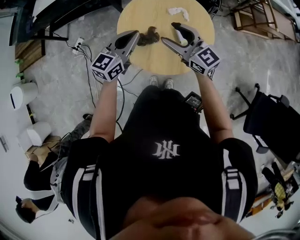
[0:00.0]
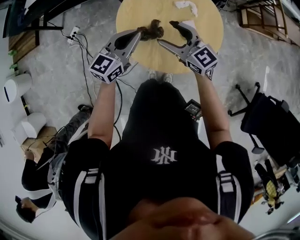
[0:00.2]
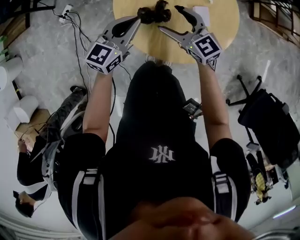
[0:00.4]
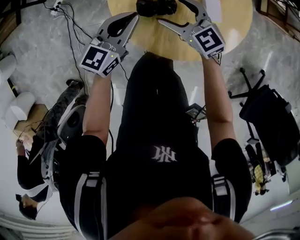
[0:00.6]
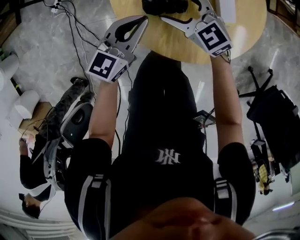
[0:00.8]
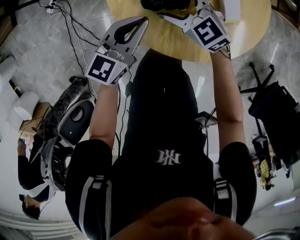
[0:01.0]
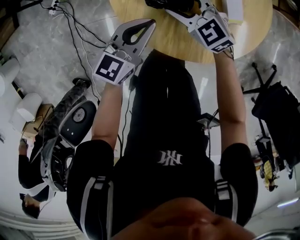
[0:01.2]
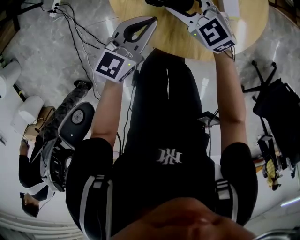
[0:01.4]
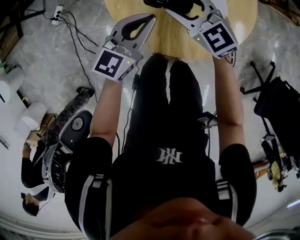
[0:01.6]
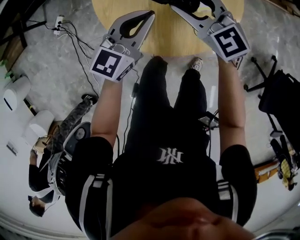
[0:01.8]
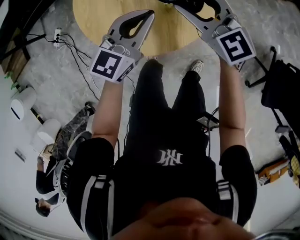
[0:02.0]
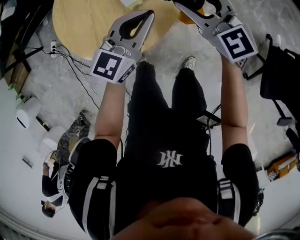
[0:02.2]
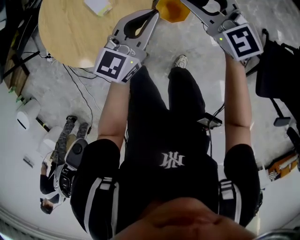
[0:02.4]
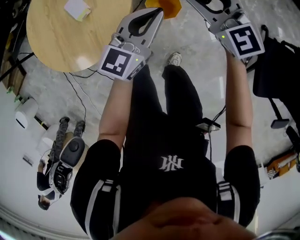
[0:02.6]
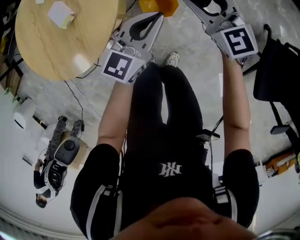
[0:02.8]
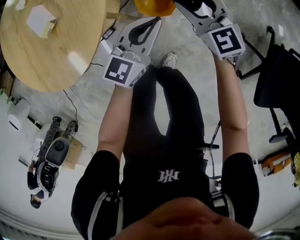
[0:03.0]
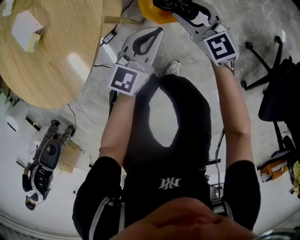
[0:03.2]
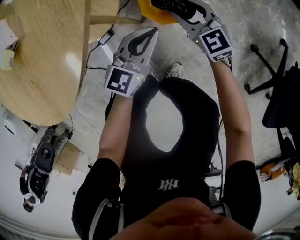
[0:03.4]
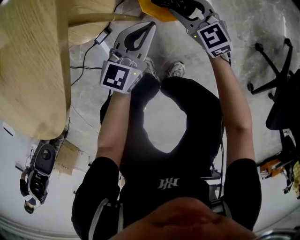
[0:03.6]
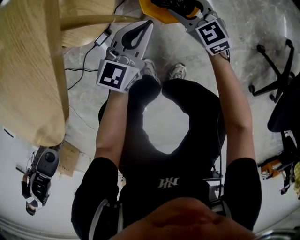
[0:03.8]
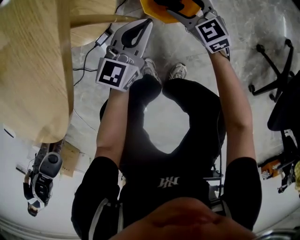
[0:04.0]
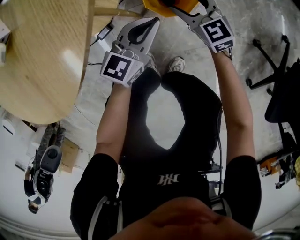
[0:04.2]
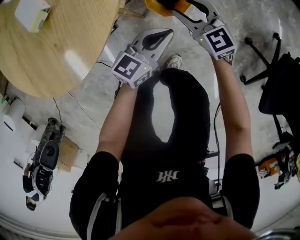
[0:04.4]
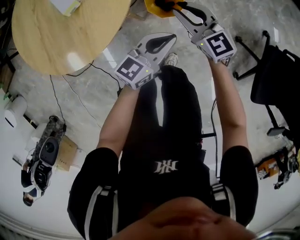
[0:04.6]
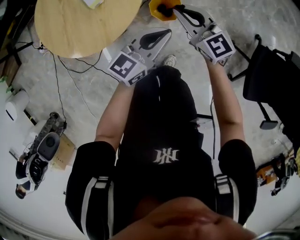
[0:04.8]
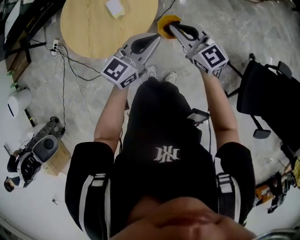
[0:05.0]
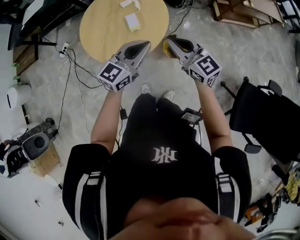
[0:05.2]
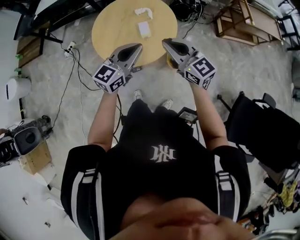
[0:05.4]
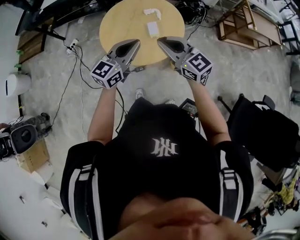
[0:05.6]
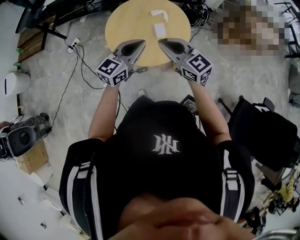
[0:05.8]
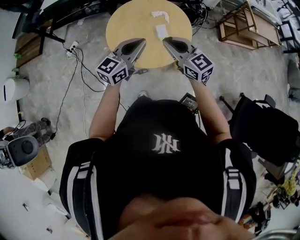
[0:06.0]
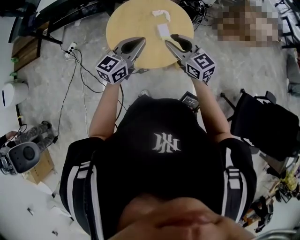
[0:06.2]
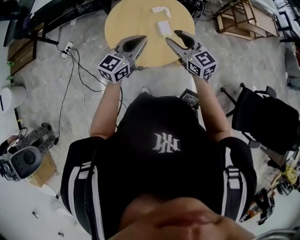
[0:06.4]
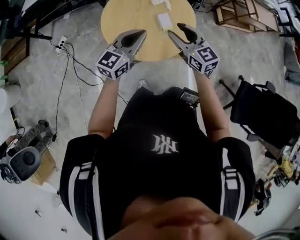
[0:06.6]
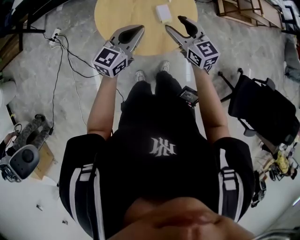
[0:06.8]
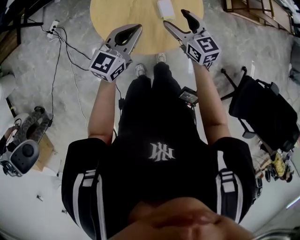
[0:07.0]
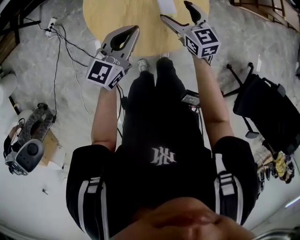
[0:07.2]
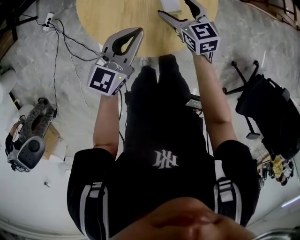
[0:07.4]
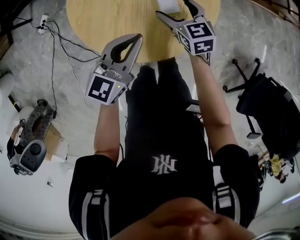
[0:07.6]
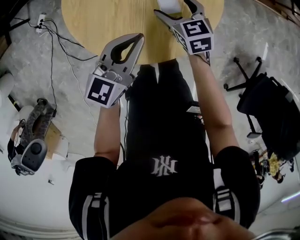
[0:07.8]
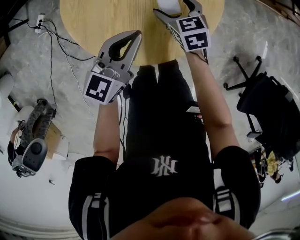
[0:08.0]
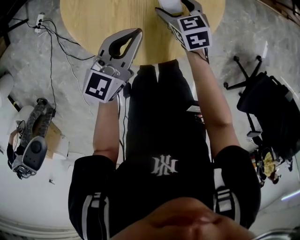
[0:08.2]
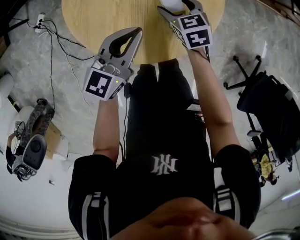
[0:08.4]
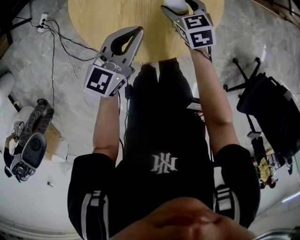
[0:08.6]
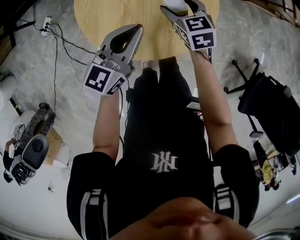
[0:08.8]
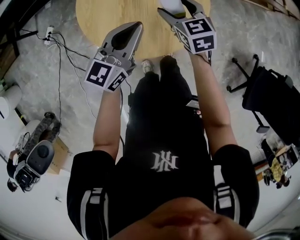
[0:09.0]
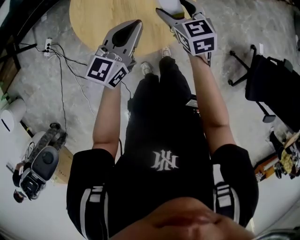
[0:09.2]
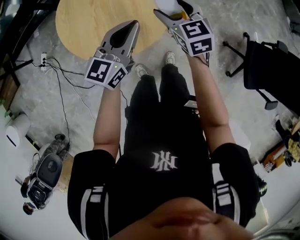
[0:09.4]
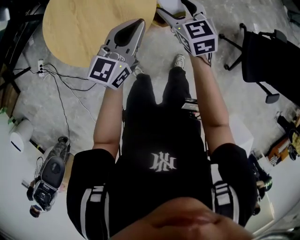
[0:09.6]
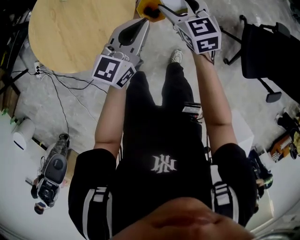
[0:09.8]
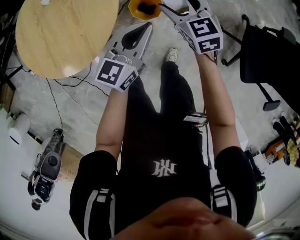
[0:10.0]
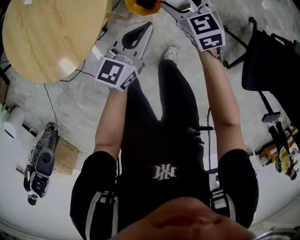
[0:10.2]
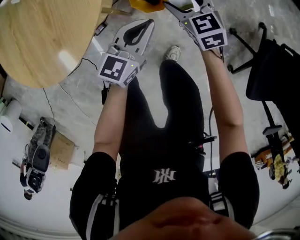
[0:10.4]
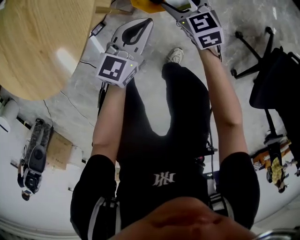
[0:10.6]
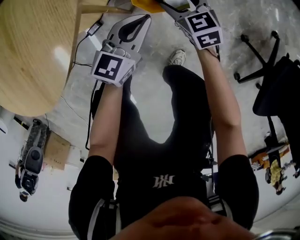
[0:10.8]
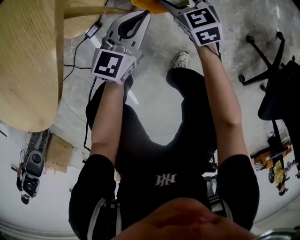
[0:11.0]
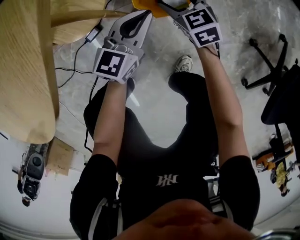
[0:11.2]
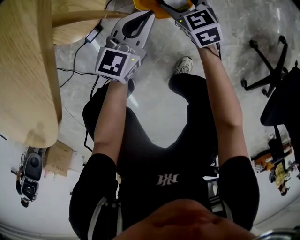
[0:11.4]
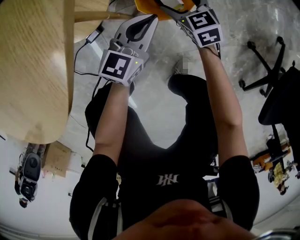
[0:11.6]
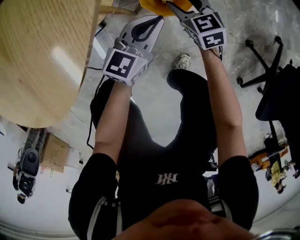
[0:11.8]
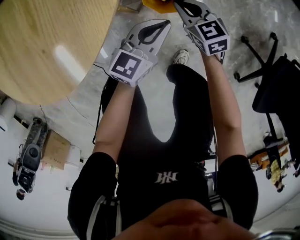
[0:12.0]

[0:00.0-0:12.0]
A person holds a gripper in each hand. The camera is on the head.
0:00.0 to 0:01.6: The grippers both shift downward by approximately 20 cm. The right gripper changes its angle by roughly 30 degrees.
0:01.6 to 0:03.0: The pair of grippers is taken to the right, some 50 cm. The right gripper turns by roughly 20 degrees.
0:03.0 to 0:04.4: The right gripper is displaced downward and to the left by roughly 15 cm, while the left gripper moves downward and backward, some 15 cm.
0:04.4 to 0:06.0: Both grippers travel together upward and to the left, roughly 60 cm. The right gripper turns by approximately 20 degrees, and closes up. Meanwhile the left gripper turns by about 30 degrees.
0:06.0 to 0:07.6: The right gripper moves downward and forward, about 35 cm, rotates about 30 degrees, and opens, while the left gripper moves downward and forward, about 20 cm.
0:07.6 to 0:09.0: The left gripper travels upward by approximately 5 cm. Meanwhile the right gripper moves upward, some 10 cm.
0:09.0 to 0:10.4: Both grippers move to the right and downward, some 50 cm.
0:10.4 to 0:12.0: The left gripper shifts about 10 cm downward; the right gripper shifts some 15 cm downward and to the left, and closes.

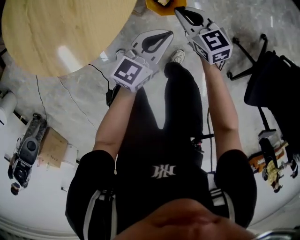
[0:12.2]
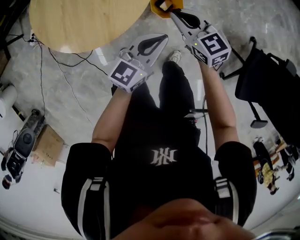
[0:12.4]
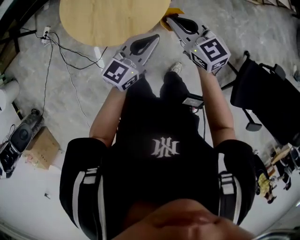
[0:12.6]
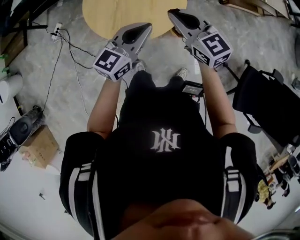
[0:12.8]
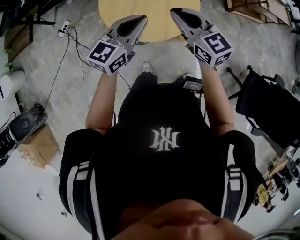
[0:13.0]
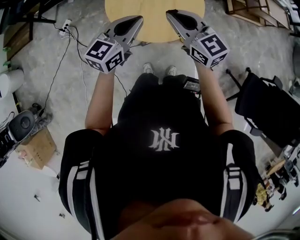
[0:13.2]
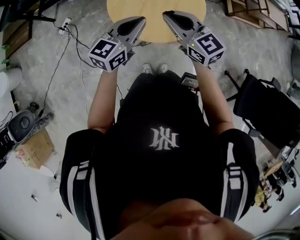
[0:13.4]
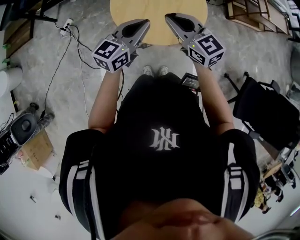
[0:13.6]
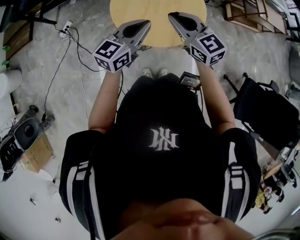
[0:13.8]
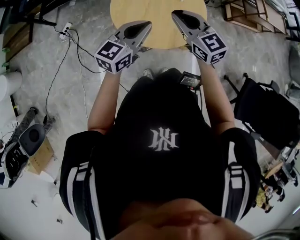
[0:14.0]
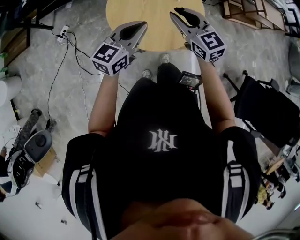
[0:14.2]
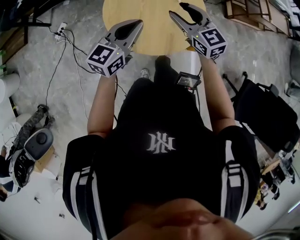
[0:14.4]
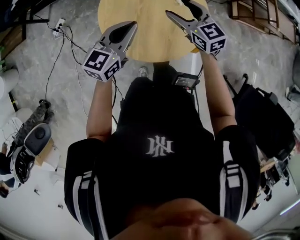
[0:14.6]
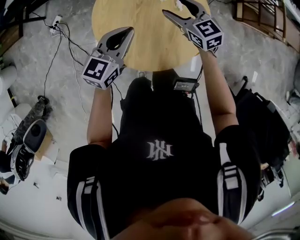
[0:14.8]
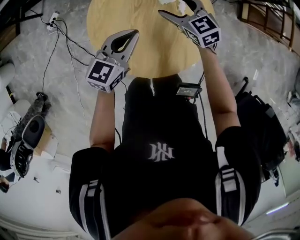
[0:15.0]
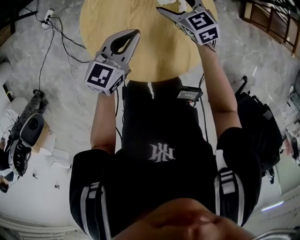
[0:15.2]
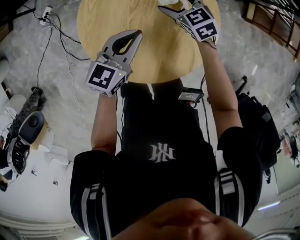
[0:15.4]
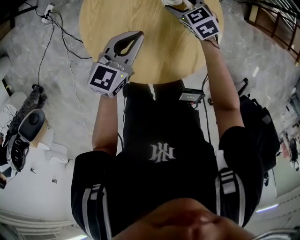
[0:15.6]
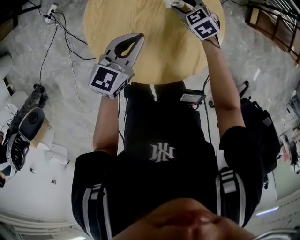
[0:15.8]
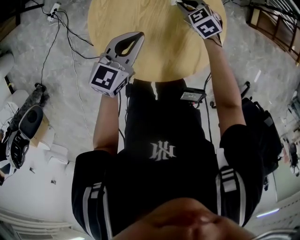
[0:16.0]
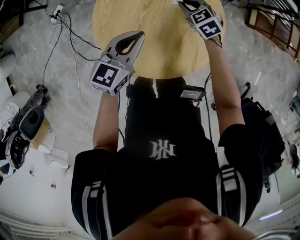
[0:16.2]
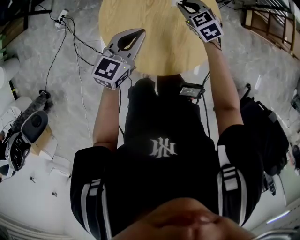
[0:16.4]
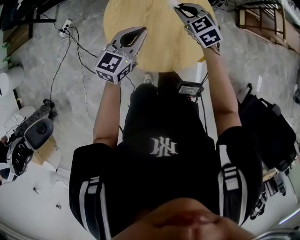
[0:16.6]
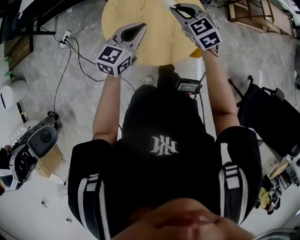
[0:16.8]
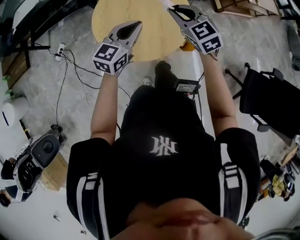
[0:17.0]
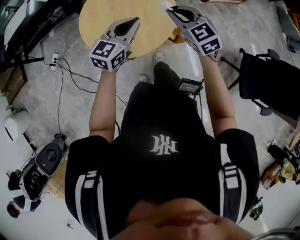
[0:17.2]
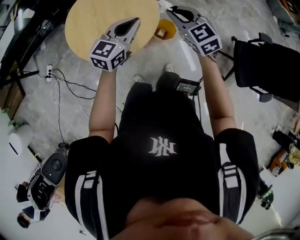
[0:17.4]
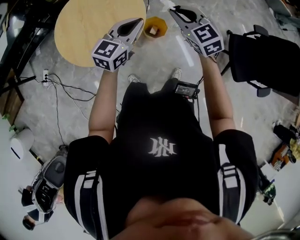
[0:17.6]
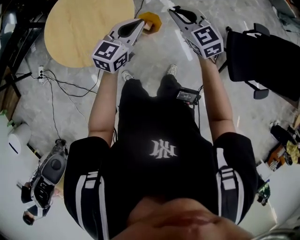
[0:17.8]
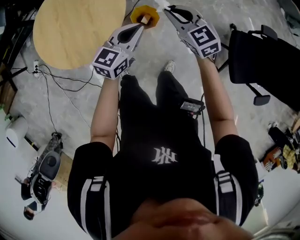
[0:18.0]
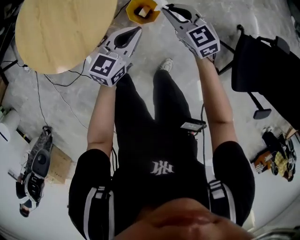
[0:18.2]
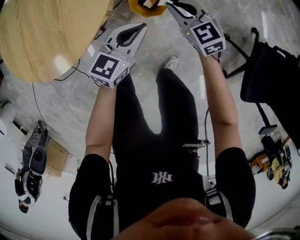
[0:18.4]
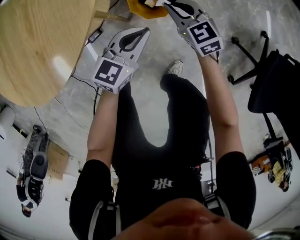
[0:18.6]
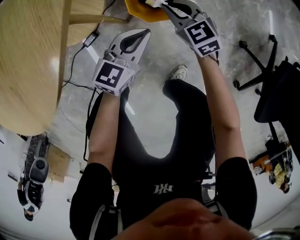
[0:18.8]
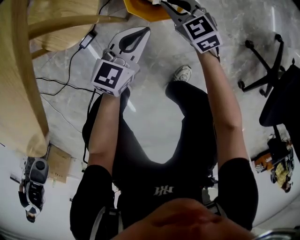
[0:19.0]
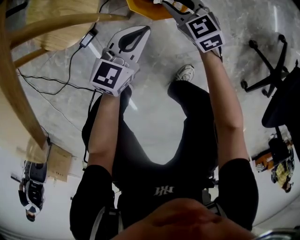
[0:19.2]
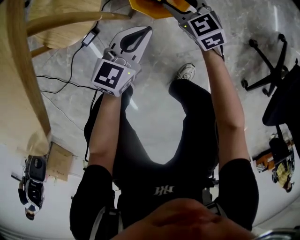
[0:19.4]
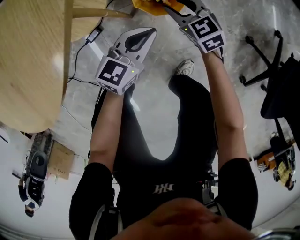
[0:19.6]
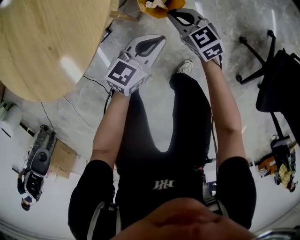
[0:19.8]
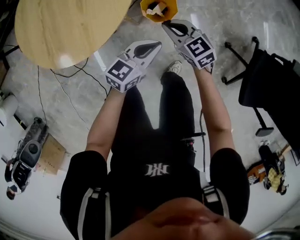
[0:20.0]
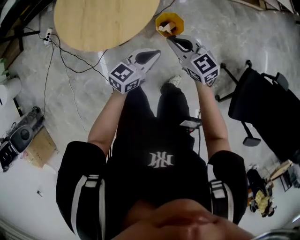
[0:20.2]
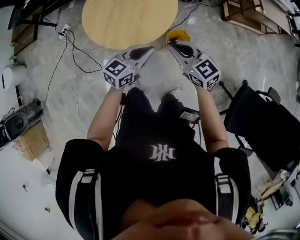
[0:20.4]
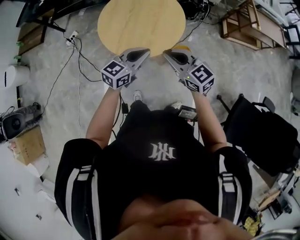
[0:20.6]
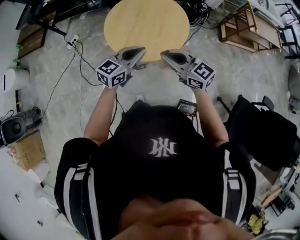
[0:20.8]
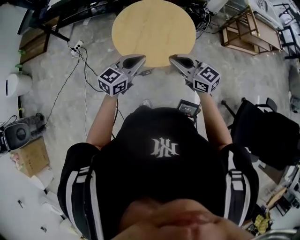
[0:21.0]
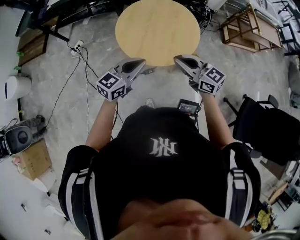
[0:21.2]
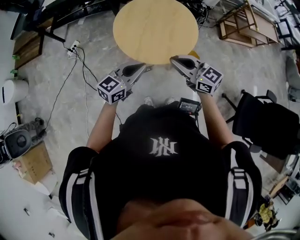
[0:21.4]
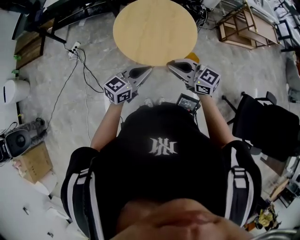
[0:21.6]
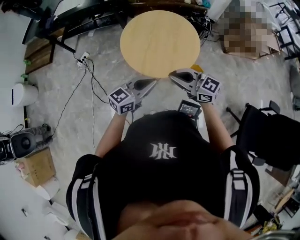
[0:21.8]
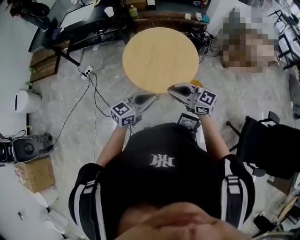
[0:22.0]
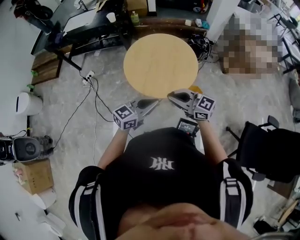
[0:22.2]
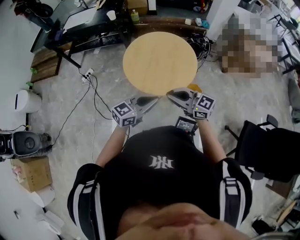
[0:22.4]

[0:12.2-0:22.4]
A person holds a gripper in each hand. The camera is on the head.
0:12.2 to 0:13.6: The left gripper goes about 50 cm to the left and upward. Meanwhile the right gripper goes approximately 60 cm upward and to the left, and swivels roughly 30 degrees.
0:13.6 to 0:15.2: Both grippers move forward and downward, some 40 cm. The right gripper turns by roughly 20 degrees, and opens up.
0:15.2 to 0:16.6: The two grippers go about 15 cm upward and backward. The right gripper closes up.
0:16.6 to 0:18.0: The pair of grippers is taken approximately 50 cm. The left gripper changes its angle by about 20 degrees. Meanwhile the right gripper turns by about 30 degrees.
0:18.0 to 0:19.4: The grippers both shift downward by approximately 60 cm. The right gripper opens its fingers.
0:19.4 to 0:21.0: The grippers both shift upward and to the left by approximately 80 cm. The right gripper turns by about 40 degrees, and closes up.
0:21.0 to 0:22.4: The left gripper shifts by some 5 cm; the right gripper ends up about 5 cm from where it was.

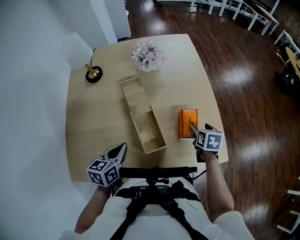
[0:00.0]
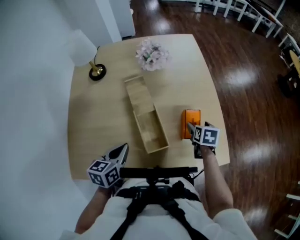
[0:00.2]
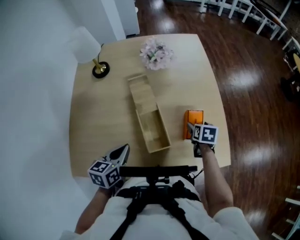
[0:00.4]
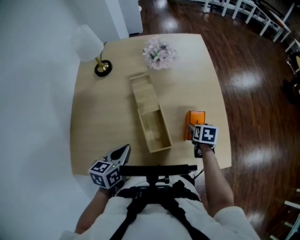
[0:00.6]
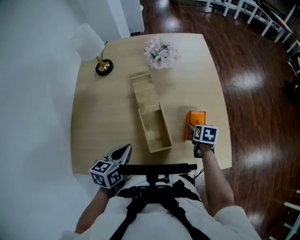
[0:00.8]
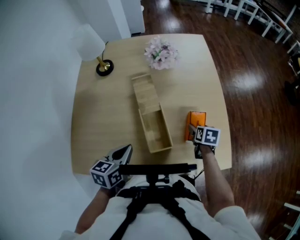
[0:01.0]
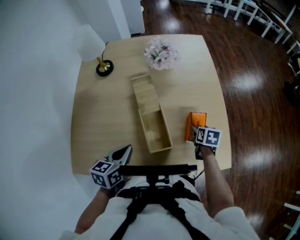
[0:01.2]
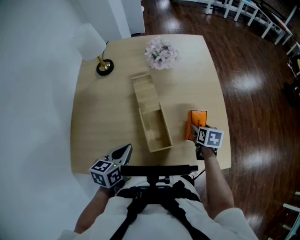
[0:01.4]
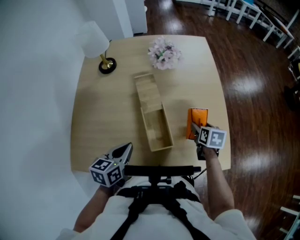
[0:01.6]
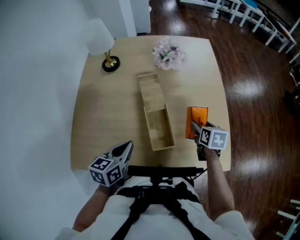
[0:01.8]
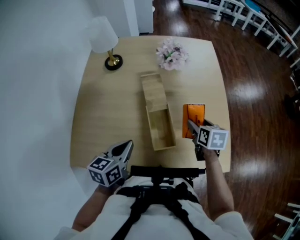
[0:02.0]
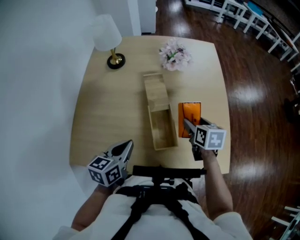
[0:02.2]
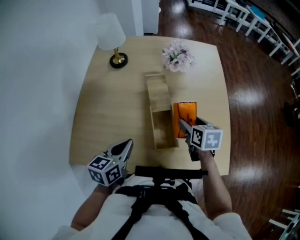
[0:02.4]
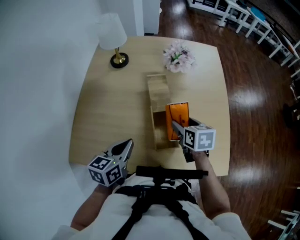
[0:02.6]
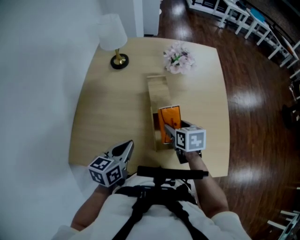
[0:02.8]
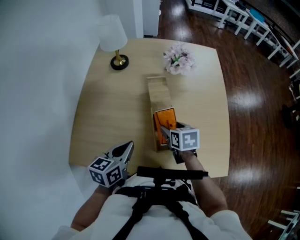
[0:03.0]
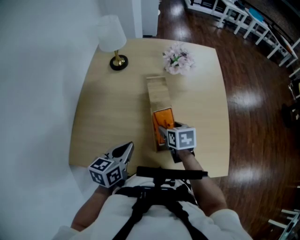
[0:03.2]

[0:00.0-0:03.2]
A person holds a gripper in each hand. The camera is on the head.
0:01.6 to 0:03.2: The right gripper moves to the left, approximately 20 cm, and turns by some 20 degrees.
